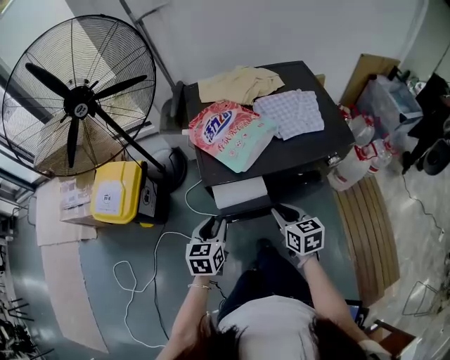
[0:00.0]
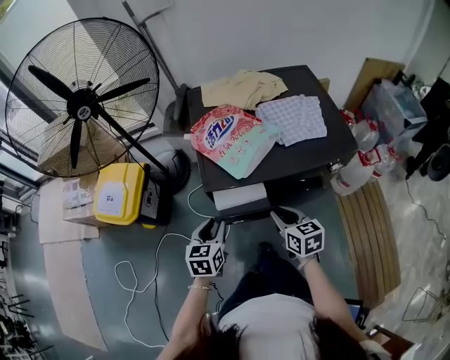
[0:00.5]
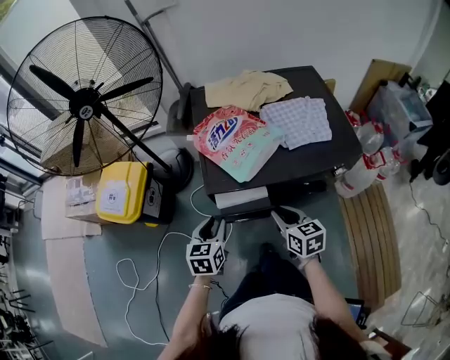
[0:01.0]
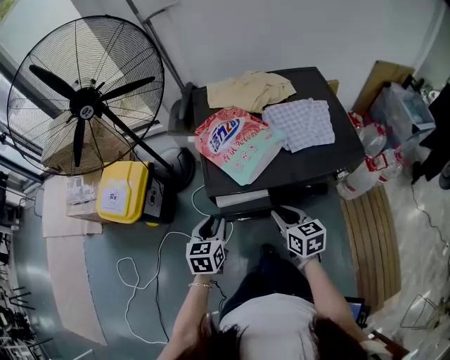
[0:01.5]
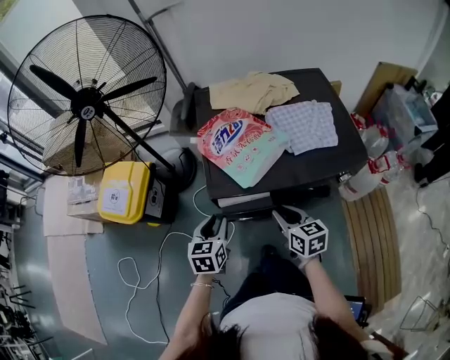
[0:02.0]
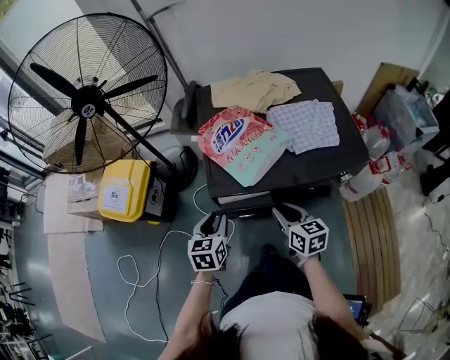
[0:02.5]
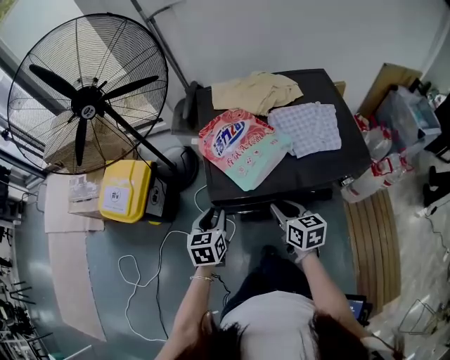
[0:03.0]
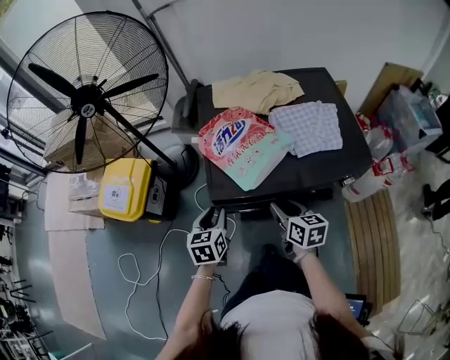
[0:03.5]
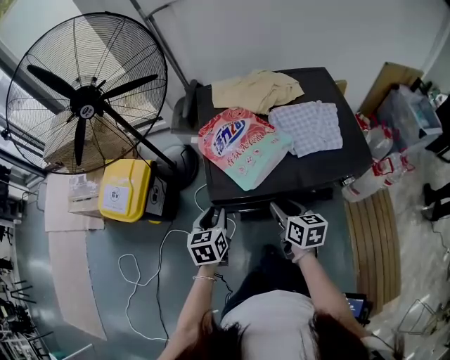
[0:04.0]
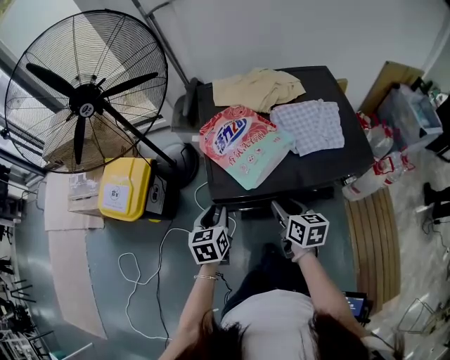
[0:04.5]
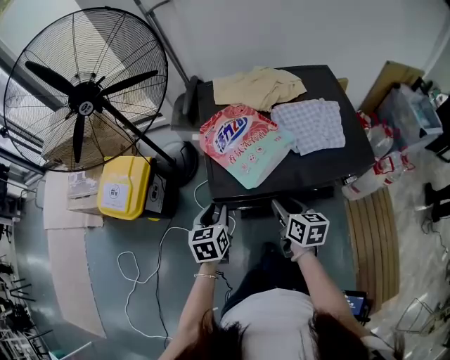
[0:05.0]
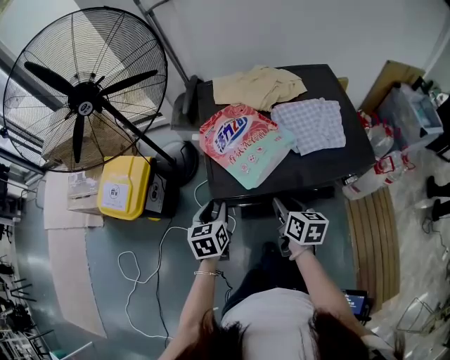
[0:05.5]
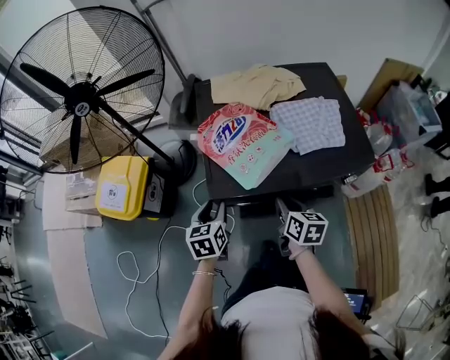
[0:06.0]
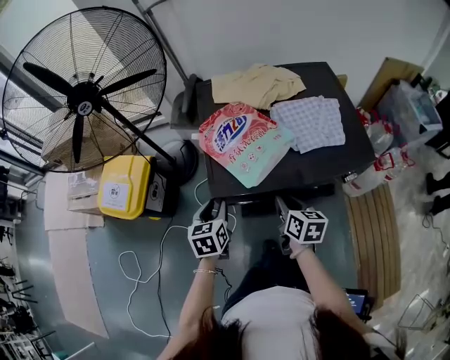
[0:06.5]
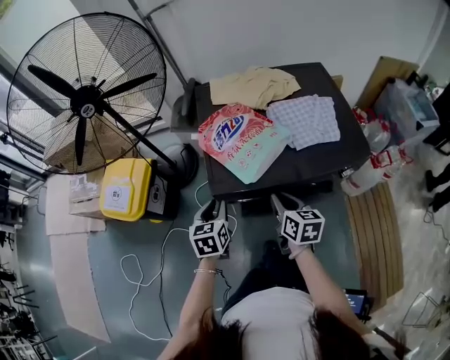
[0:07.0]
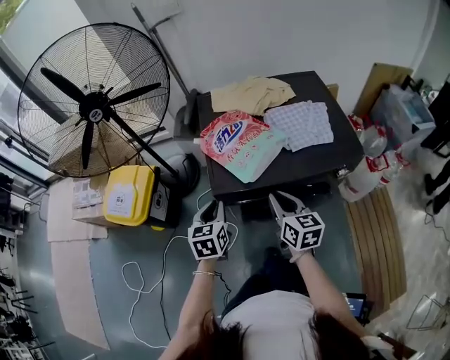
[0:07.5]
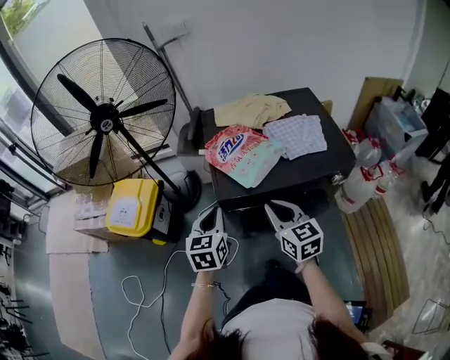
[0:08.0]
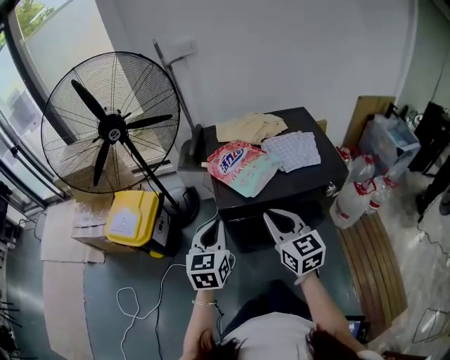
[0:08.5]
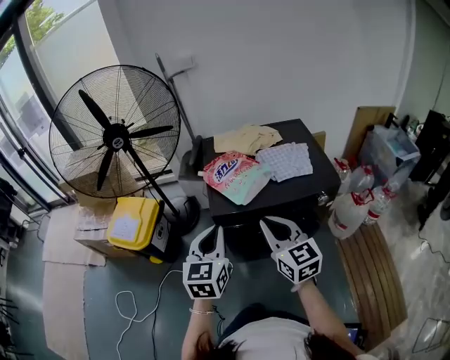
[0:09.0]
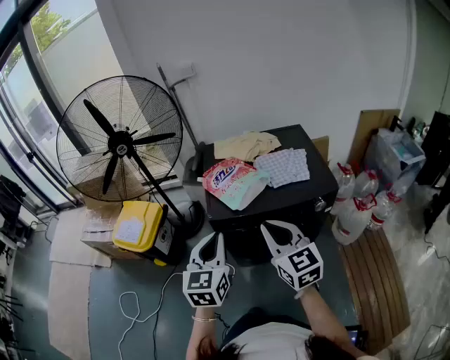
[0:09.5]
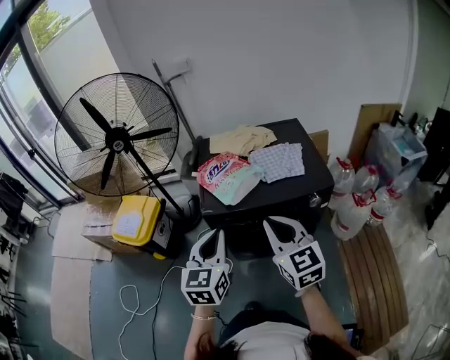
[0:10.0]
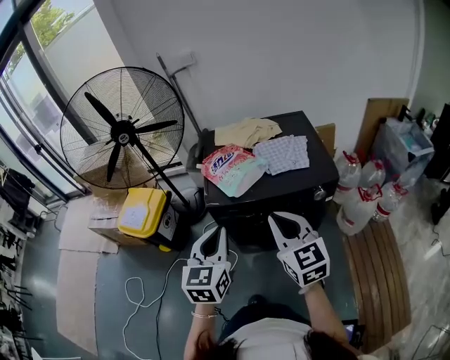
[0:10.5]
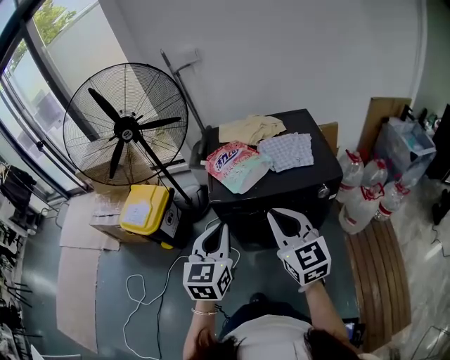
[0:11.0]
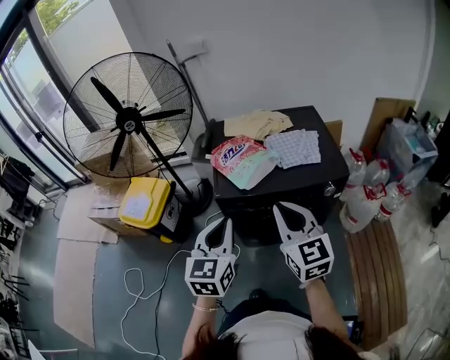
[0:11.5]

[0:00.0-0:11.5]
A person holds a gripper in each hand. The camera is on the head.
0.0 to 2.0 s: Both grippers move forward, some 5 cm.
2.0 to 6.0 s: The grippers move only a little.
6.0 to 7.5 s: The right gripper heads upward, covering roughly 10 cm. The left gripper travels upward by some 5 cm, and closes up.
7.5 to 9.5 s: Both grippers travel together upward and backward, about 25 cm. The left gripper rotates about 20 degrees. The right gripper turns by approximately 30 degrees.
9.5 to 11.5 s: The grippers move only a little.

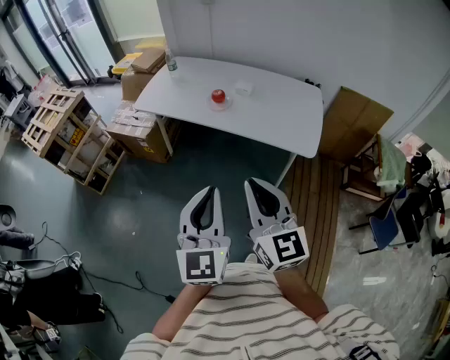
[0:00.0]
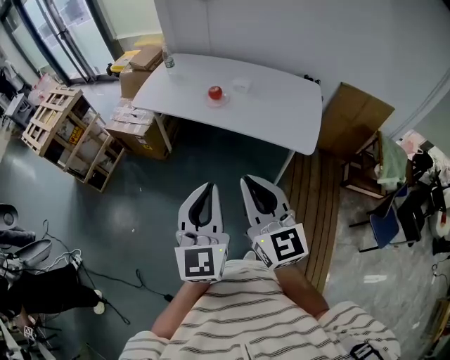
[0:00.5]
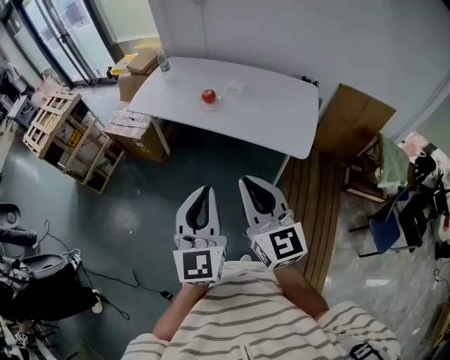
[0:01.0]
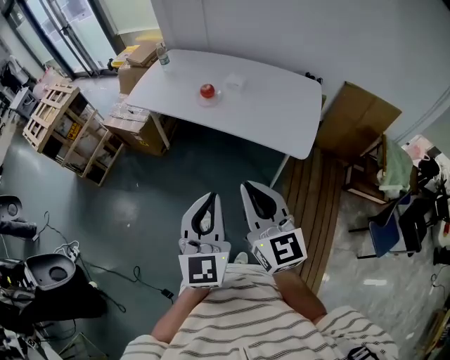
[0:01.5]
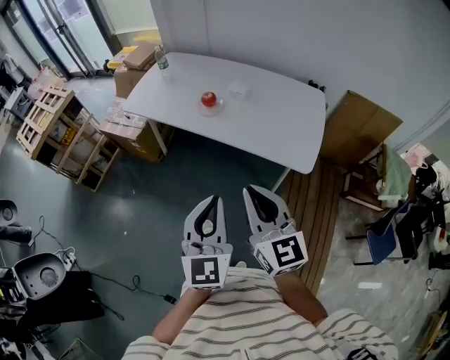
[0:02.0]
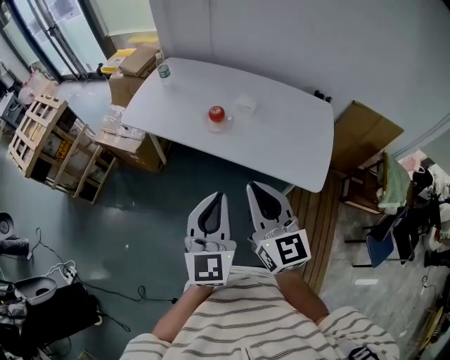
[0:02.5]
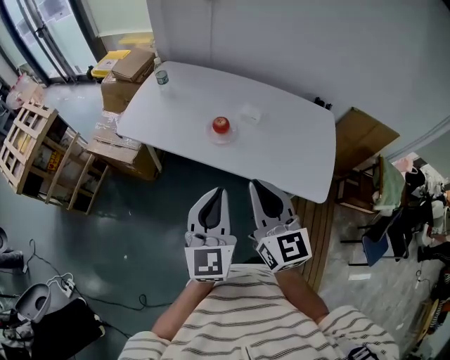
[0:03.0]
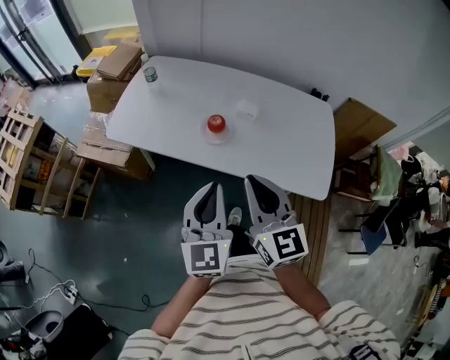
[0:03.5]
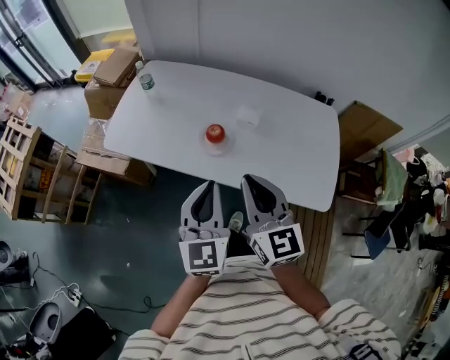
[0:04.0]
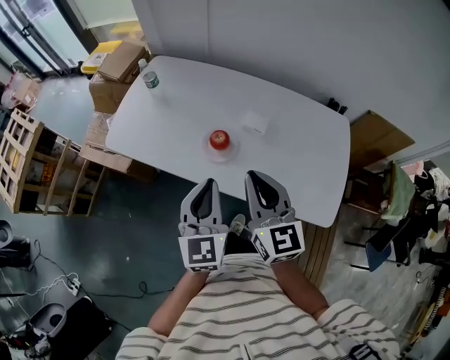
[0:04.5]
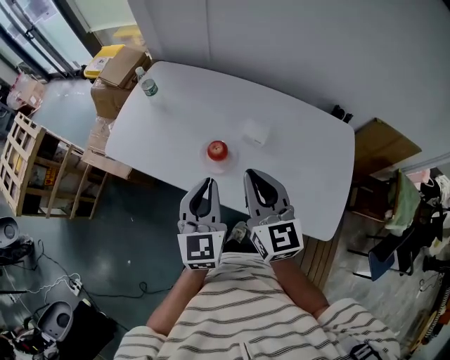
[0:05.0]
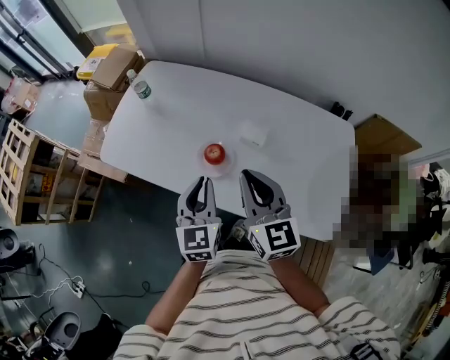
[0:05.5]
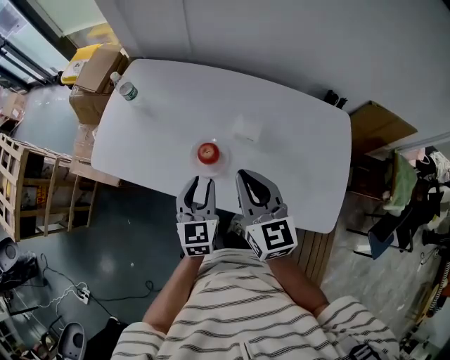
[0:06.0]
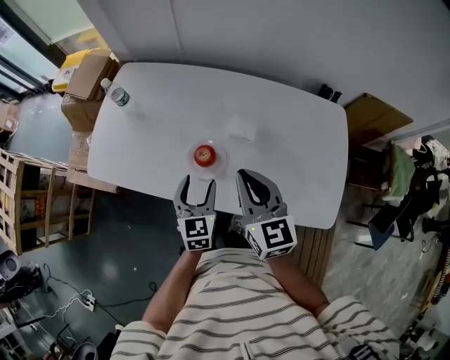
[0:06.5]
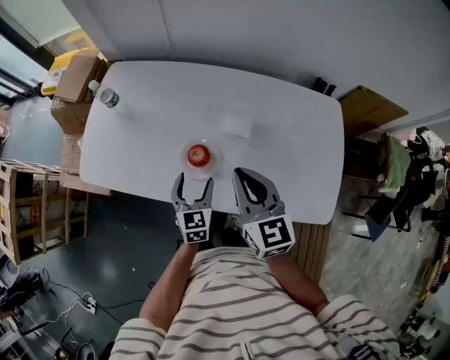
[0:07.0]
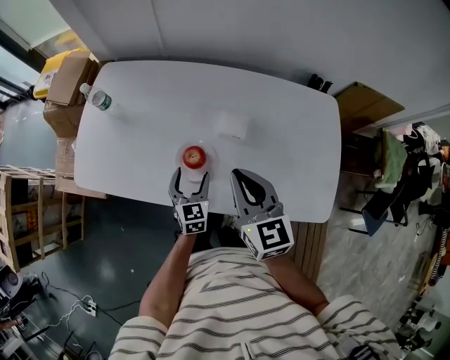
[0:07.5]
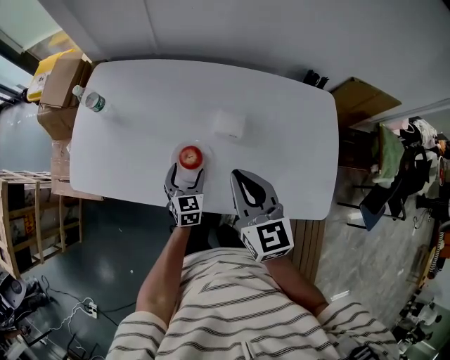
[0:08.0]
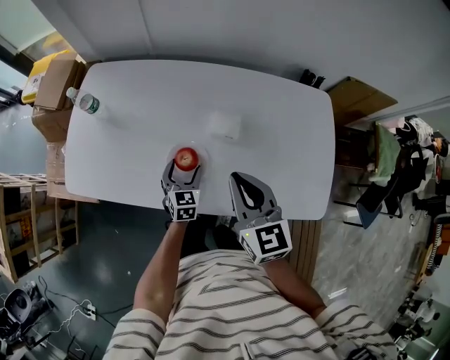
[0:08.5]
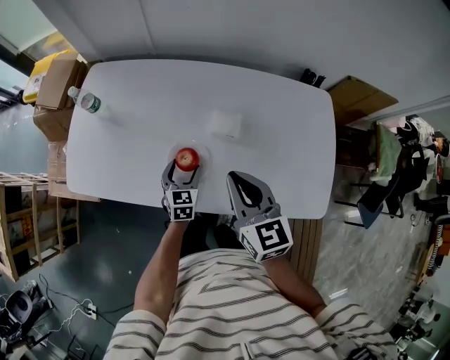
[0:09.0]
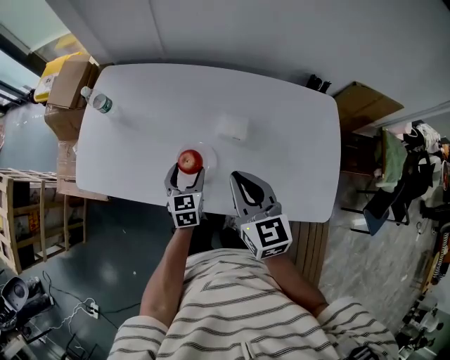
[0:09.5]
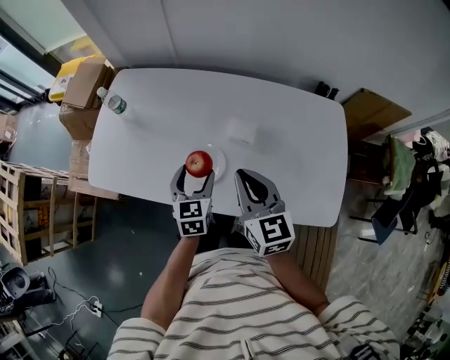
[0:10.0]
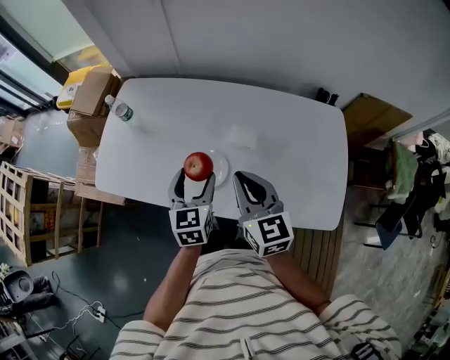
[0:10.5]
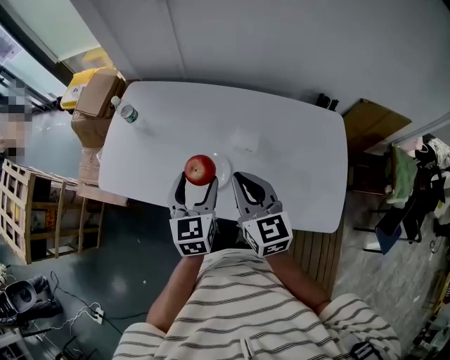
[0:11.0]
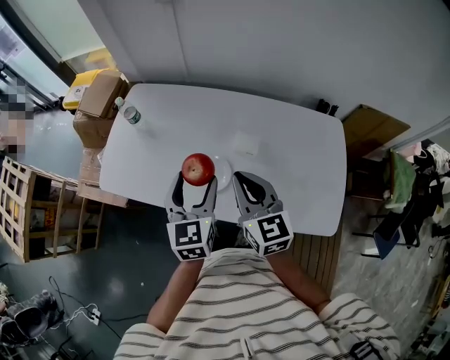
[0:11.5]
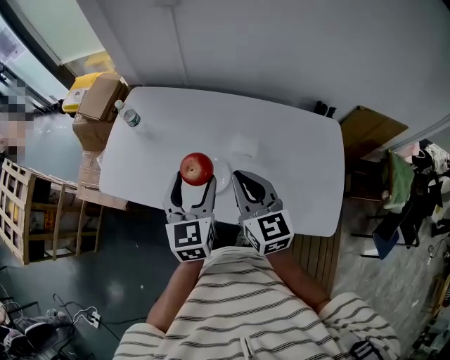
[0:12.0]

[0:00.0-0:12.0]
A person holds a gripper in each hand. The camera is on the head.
0.0 to 2.0 s: The left gripper heads to the right, forward and downward, covering roughly 15 cm. The right gripper heads to the right and forward, covering roughly 10 cm.
2.0 to 4.0 s: Both grippers move forward, some 30 cm.
4.0 to 6.0 s: The grippers both shift forward and downward by about 20 cm.
6.0 to 8.0 s: The left gripper heads downward and forward, covering roughly 20 cm, and opens.
8.0 to 10.0 s: The left gripper is displaced upward by some 10 cm.
10.0 to 12.0 s: The left gripper travels upward by approximately 15 cm; the right gripper moves upward, roughly 5 cm.

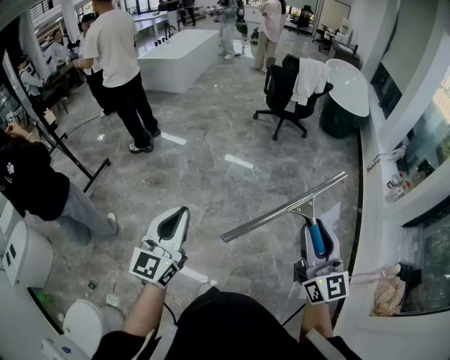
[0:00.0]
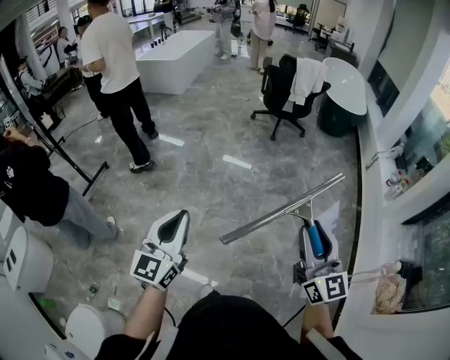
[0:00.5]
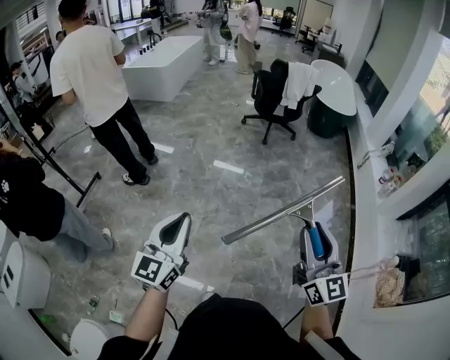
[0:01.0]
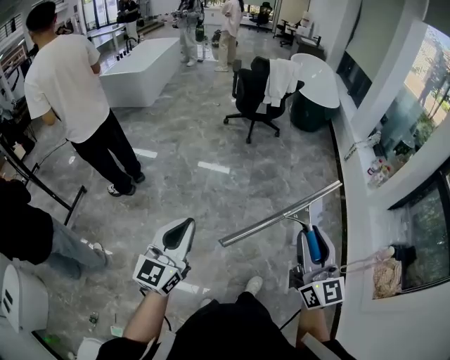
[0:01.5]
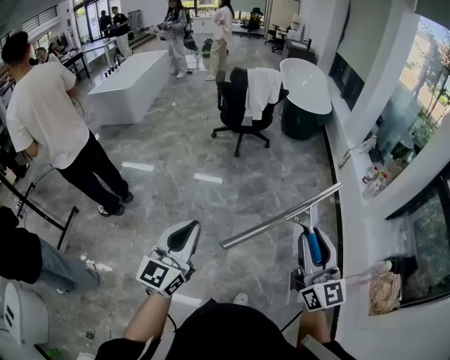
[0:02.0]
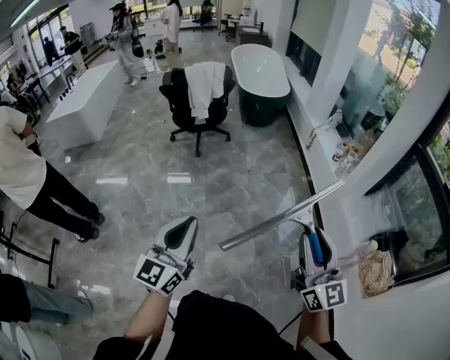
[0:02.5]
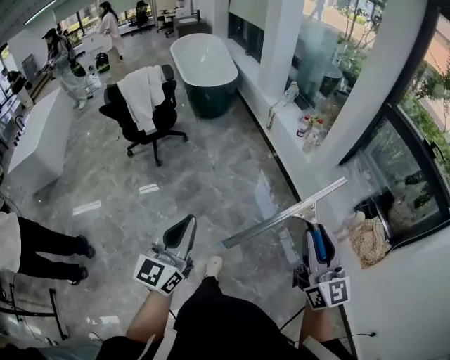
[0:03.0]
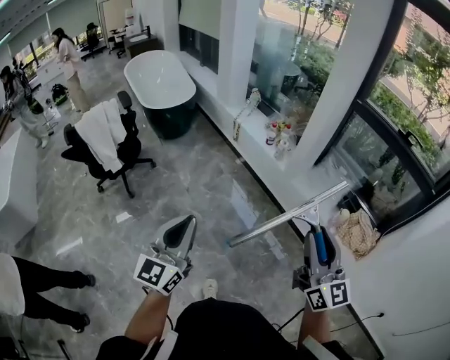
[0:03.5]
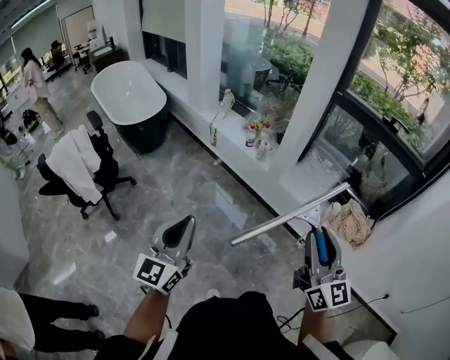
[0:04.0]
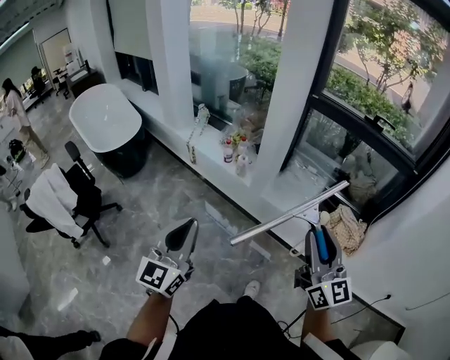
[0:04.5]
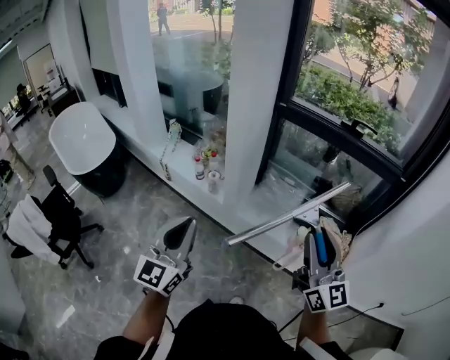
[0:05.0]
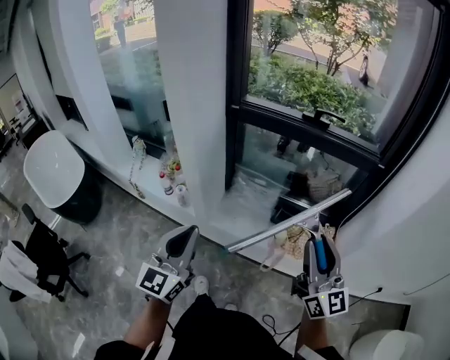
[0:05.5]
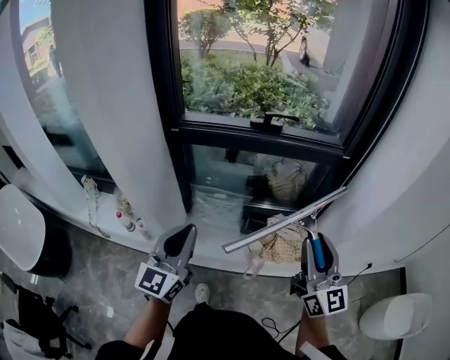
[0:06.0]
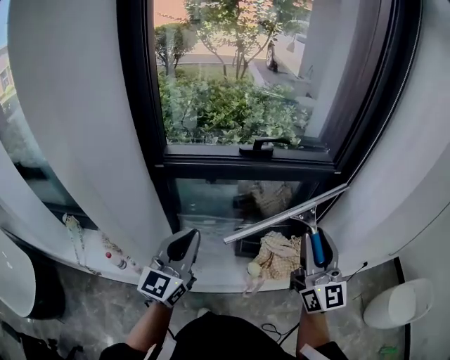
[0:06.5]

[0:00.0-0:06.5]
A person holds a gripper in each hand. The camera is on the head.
0.0 to 2.0 s: Both grippers move forward and to the right, approximately 20 cm.
2.0 to 4.5 s: Both grippers are carried approximately 50 cm. The left gripper rotates roughly 60 degrees, while the right gripper rotates about 60 degrees.
4.5 to 6.5 s: The left gripper shifts by roughly 60 cm, and turns by approximately 40 degrees; the right gripper ends up some 40 cm from where it was, and changes its angle by roughly 50 degrees.
